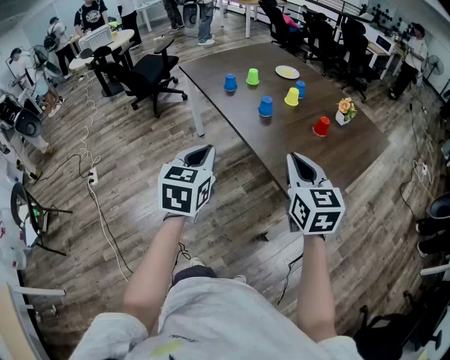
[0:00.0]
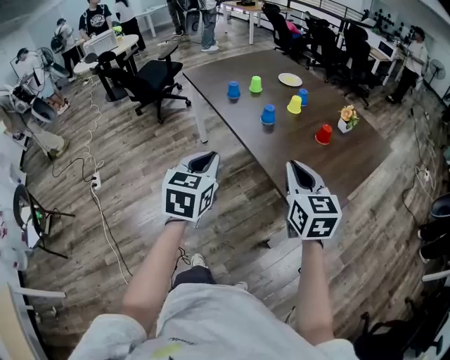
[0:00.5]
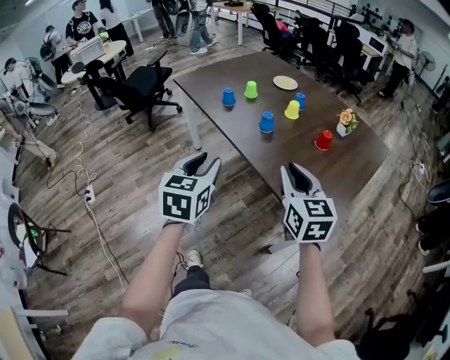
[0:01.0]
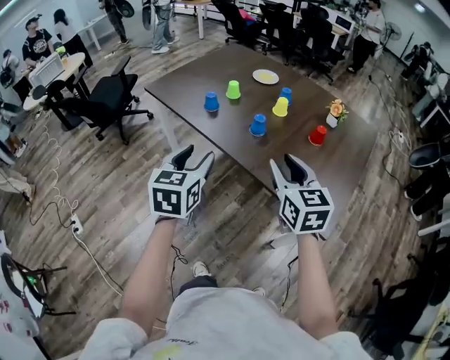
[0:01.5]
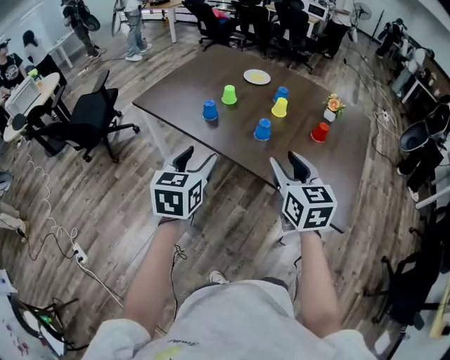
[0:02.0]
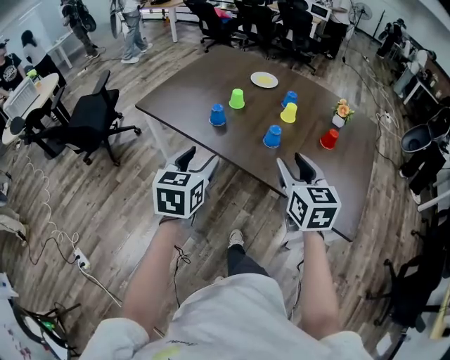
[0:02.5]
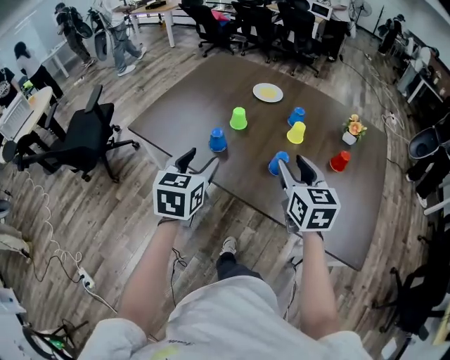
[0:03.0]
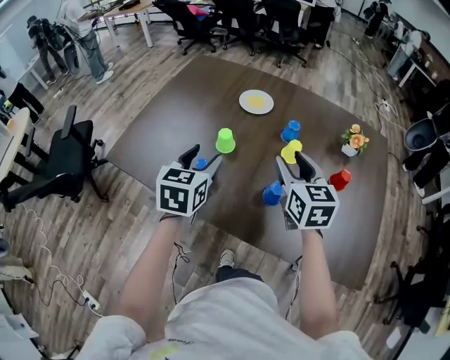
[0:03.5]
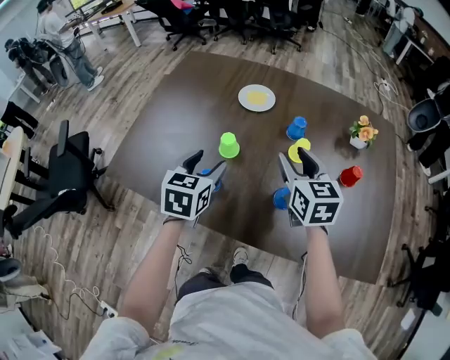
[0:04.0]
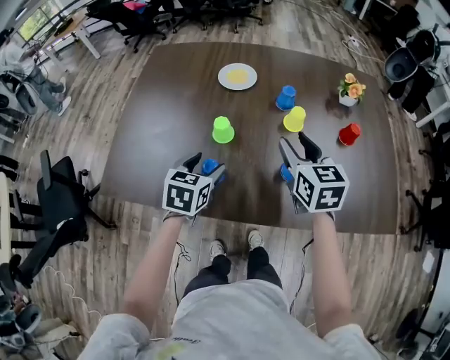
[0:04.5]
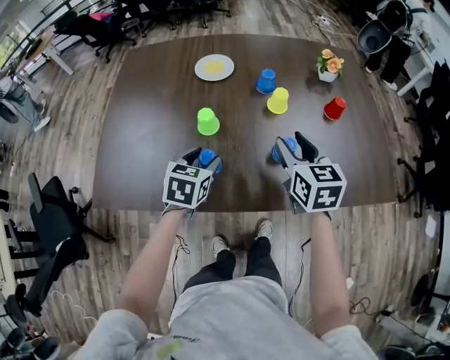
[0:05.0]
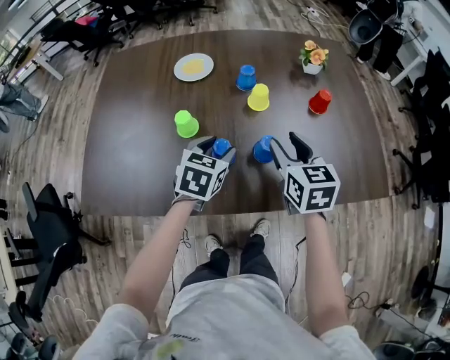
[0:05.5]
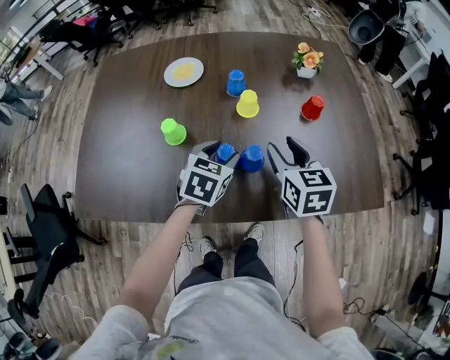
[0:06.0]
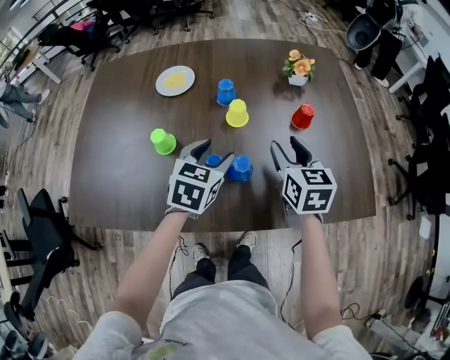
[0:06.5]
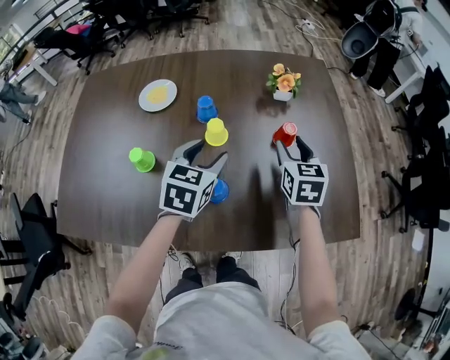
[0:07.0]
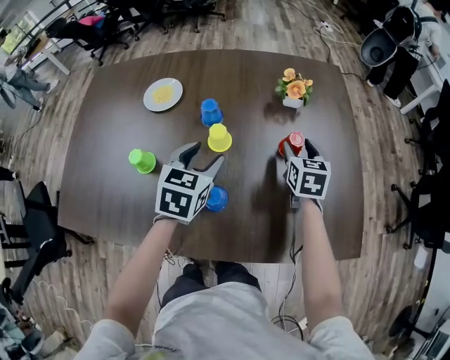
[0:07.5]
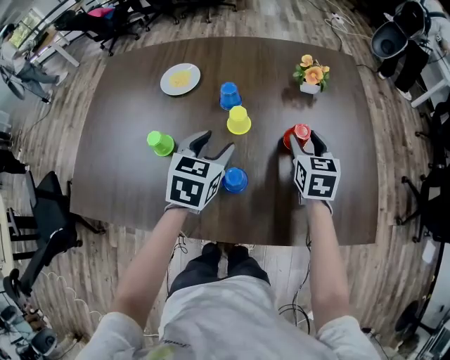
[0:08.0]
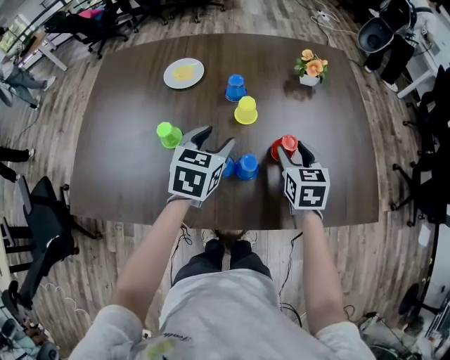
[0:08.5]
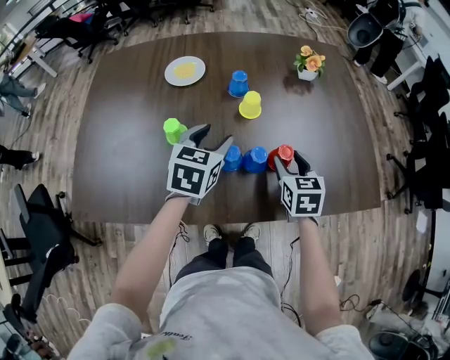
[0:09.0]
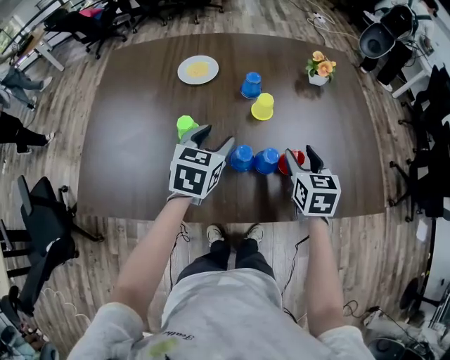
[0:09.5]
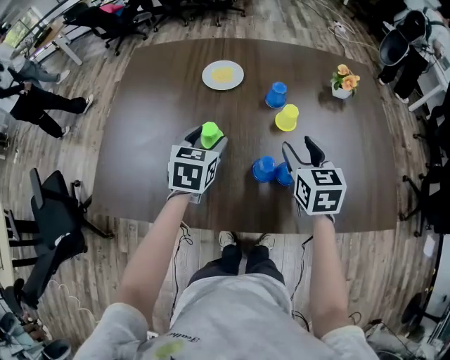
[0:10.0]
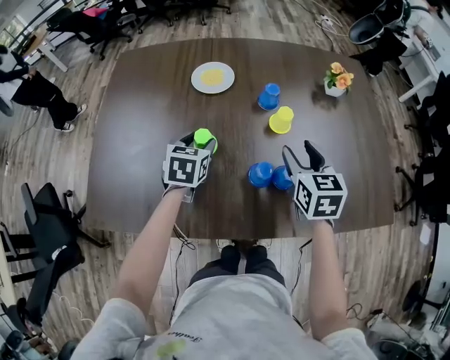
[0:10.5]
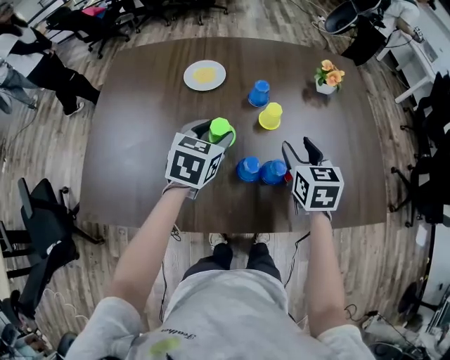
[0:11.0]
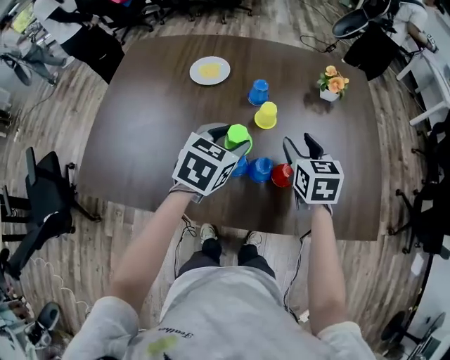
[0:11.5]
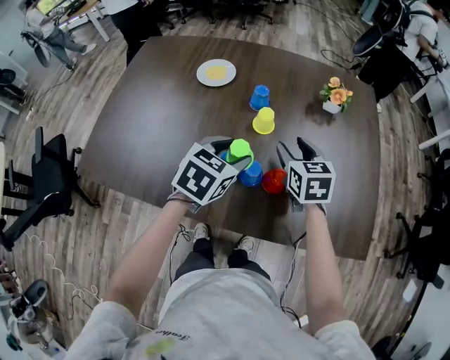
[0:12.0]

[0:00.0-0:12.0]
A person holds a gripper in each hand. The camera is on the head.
0:00.0 to 0:02.0: The two grippers go approximately 25 cm forward and to the left. The left gripper changes its angle by approximately 20 degrees, and opens up, while the right gripper changes its angle by roughly 20 degrees, and opens its fingers.
0:02.0 to 0:04.0: The grippers both shift forward by about 35 cm. The left gripper rotates approximately 20 degrees.
0:04.0 to 0:06.0: The right gripper moves about 15 cm, and changes its angle by about 20 degrees, while the left gripper shifts by approximately 20 cm, and swivels about 30 degrees.
0:06.0 to 0:08.0: The right gripper moves forward and to the right, some 15 cm; the left gripper moves forward, roughly 5 cm.
0:08.0 to 0:10.0: The left gripper heads to the left, covering roughly 20 cm; the right gripper heads to the left and backward, covering approximately 20 cm.
0:10.0 to 0:12.0: The left gripper travels to the right by some 20 cm. Meanwhile the right gripper travels to the right by approximately 10 cm.

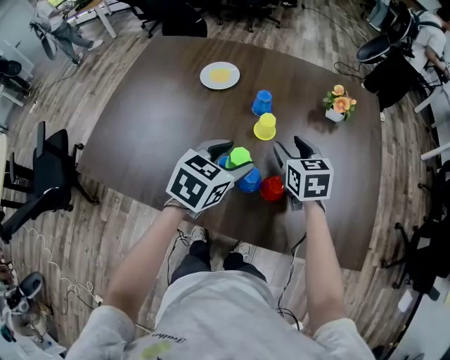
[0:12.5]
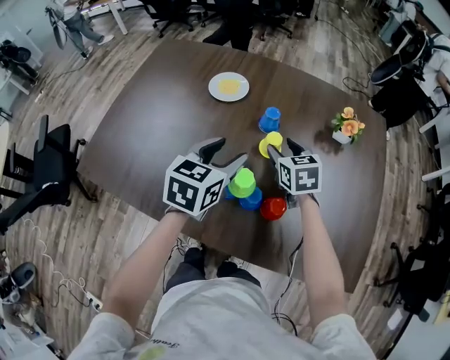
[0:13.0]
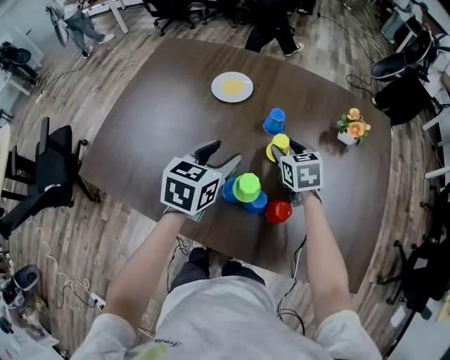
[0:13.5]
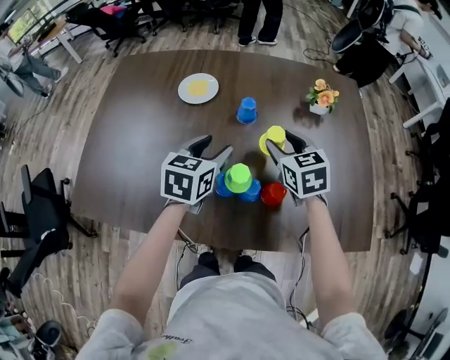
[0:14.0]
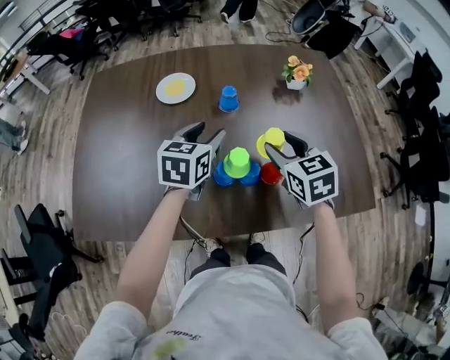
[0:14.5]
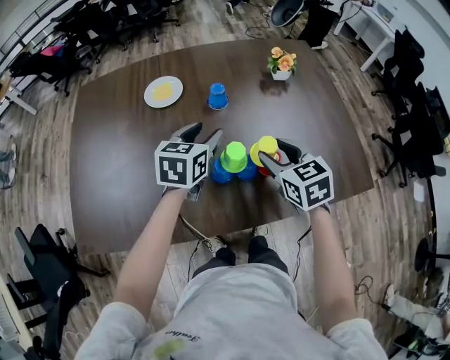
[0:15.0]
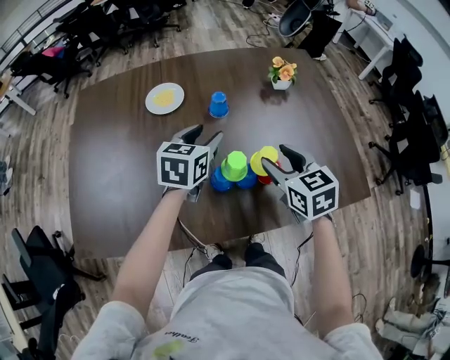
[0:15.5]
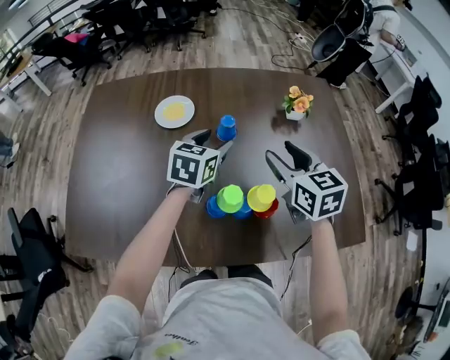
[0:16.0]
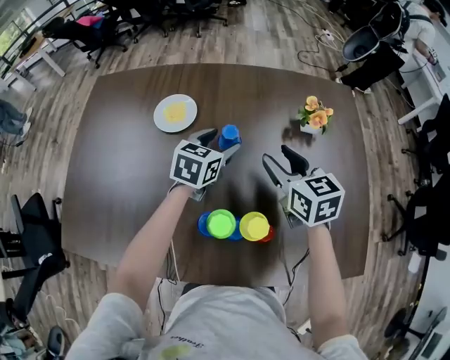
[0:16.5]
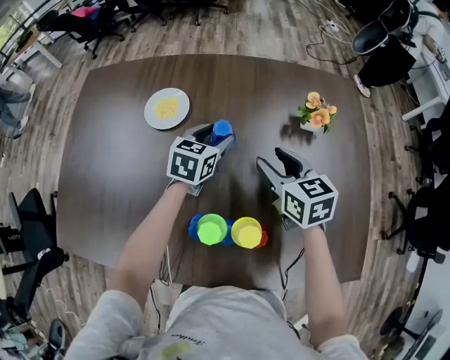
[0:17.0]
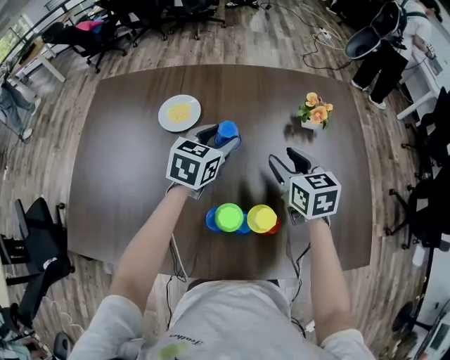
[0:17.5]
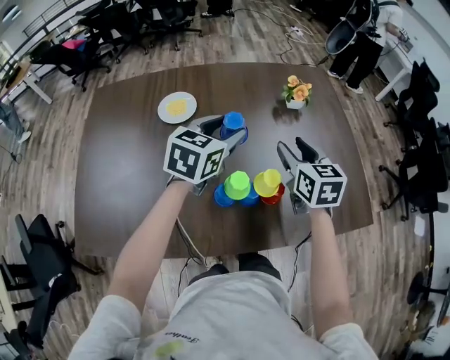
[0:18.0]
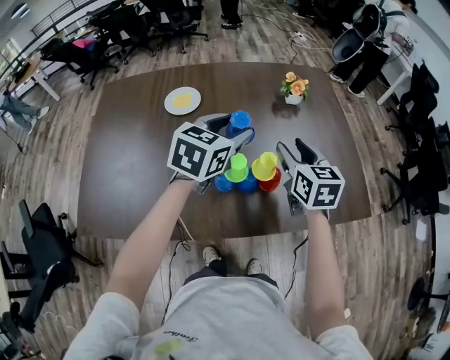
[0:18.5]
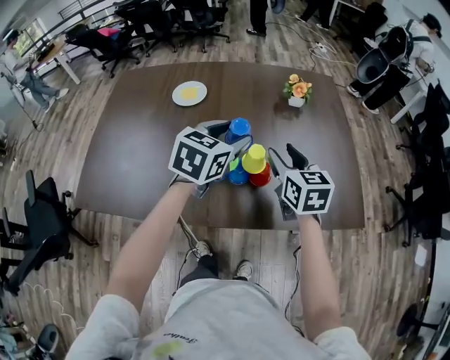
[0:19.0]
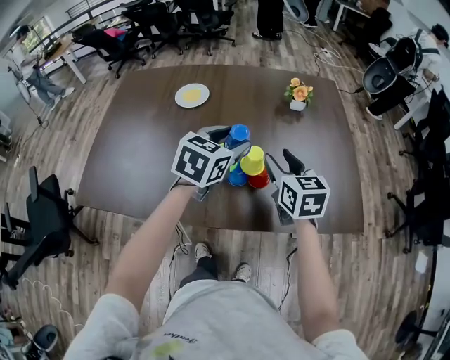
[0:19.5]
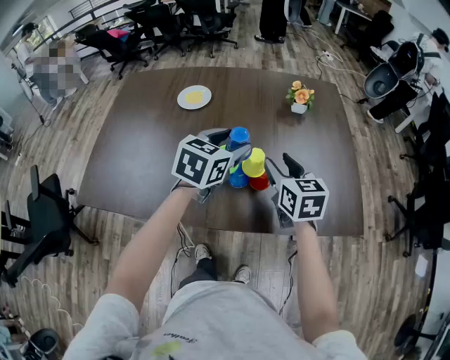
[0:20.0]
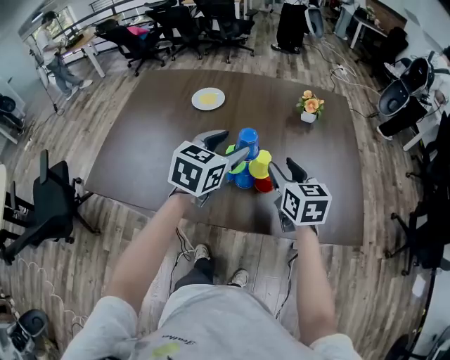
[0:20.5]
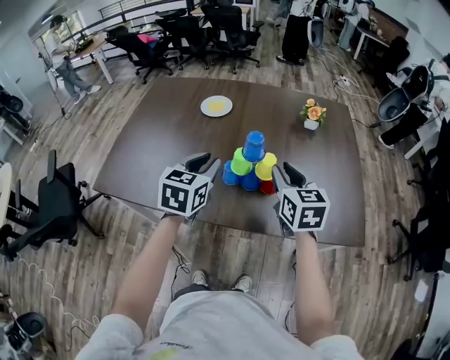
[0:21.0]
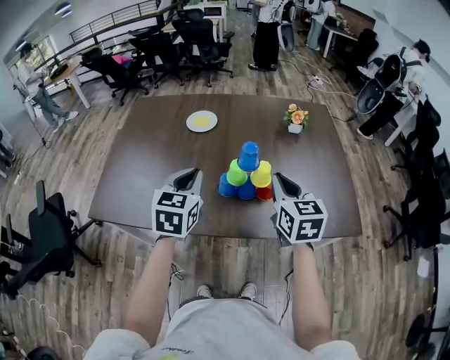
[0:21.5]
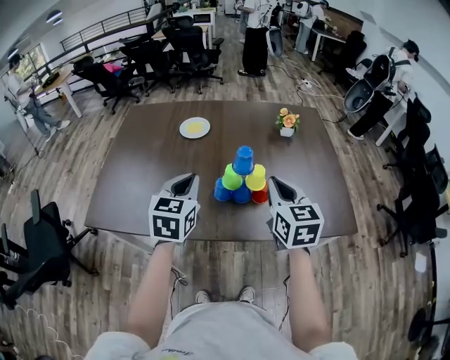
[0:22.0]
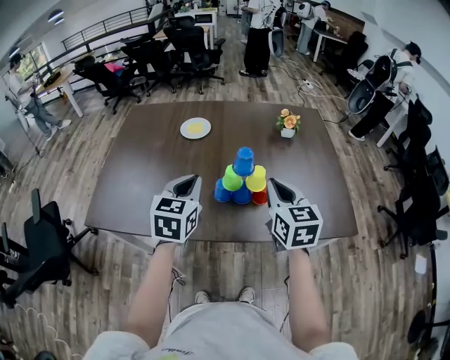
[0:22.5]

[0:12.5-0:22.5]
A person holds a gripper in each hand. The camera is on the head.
0:12.5 to 0:14.5: The left gripper goes some 10 cm forward and to the left; the right gripper shifts approximately 5 cm backward.
0:14.5 to 0:16.5: The left gripper shifts roughly 15 cm forward and downward, while the right gripper shifts approximately 15 cm forward.
0:16.5 to 0:18.5: The left gripper shifts about 20 cm backward and upward; the right gripper is displaced backward by approximately 15 cm, and turns by approximately 20 degrees.
0:18.5 to 0:20.5: The grippers both shift backward by some 5 cm.
0:20.5 to 0:22.5: The right gripper goes roughly 10 cm backward and upward, and closes its fingers. The left gripper travels to the left and backward by about 15 cm, and closes.

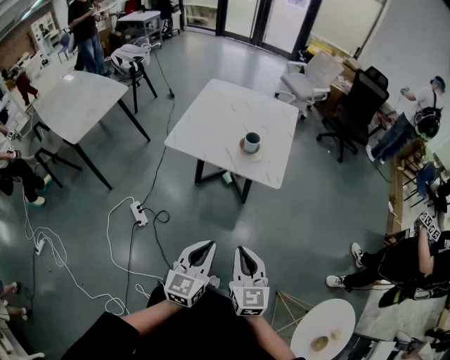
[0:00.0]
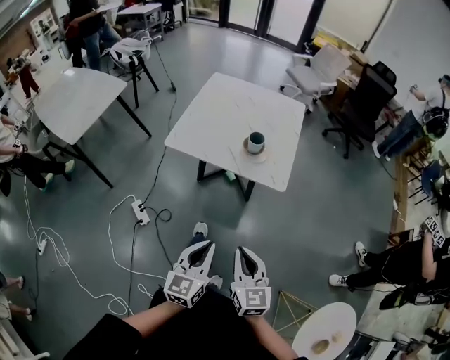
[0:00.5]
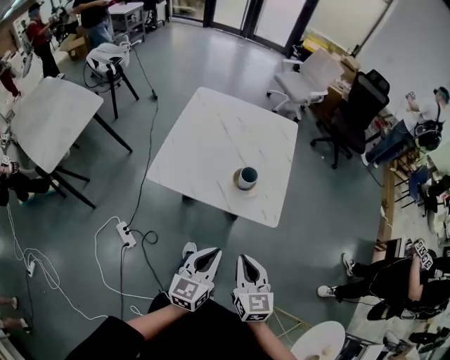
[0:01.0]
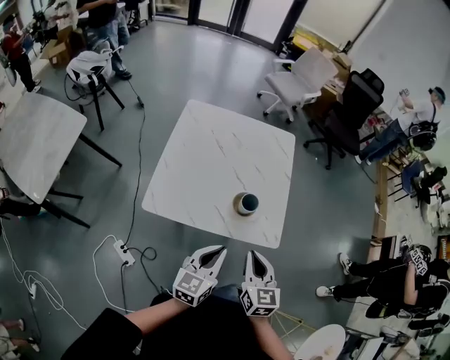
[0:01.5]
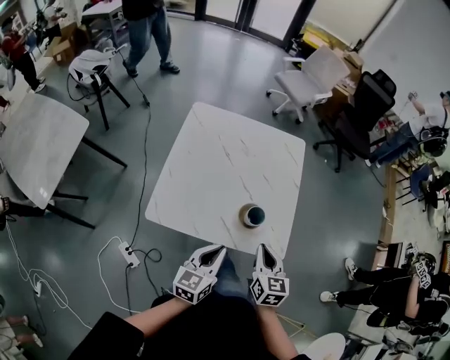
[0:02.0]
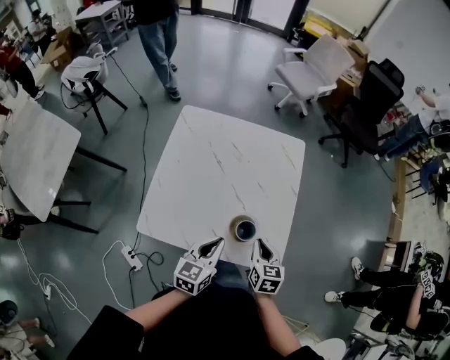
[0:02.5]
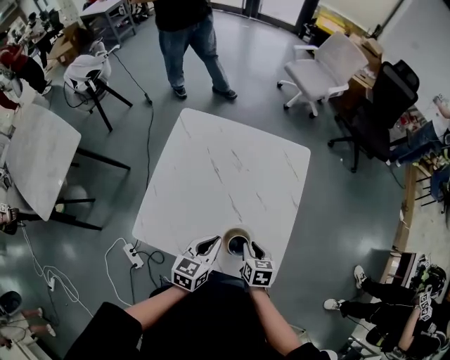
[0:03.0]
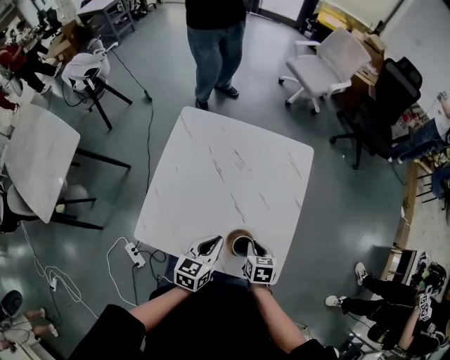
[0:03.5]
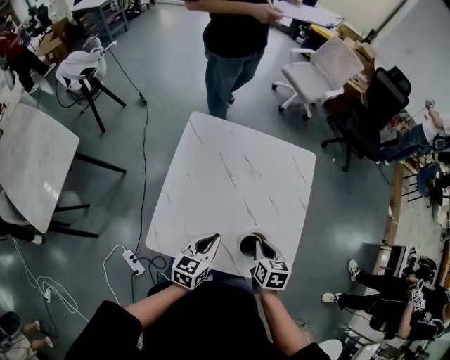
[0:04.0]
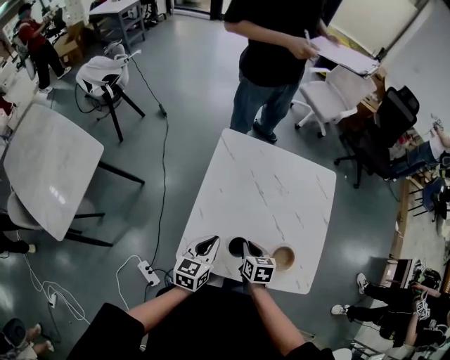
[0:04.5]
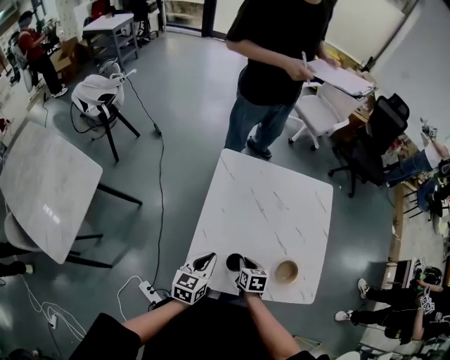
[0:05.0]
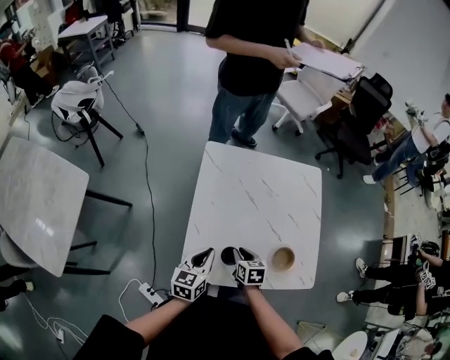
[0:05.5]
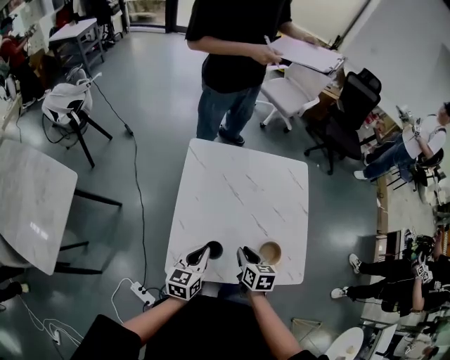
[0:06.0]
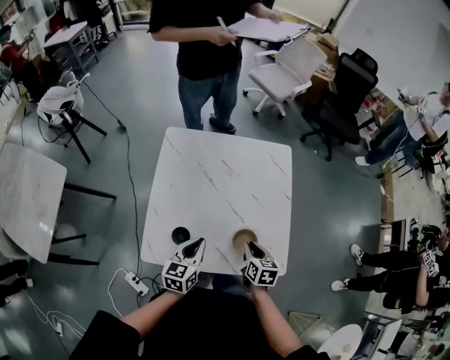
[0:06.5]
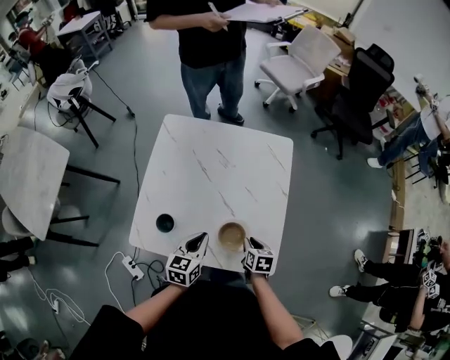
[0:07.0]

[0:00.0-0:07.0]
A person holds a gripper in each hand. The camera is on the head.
0:00.0 to 0:02.0: The two grippers travel together, forward, approximately 50 cm. The right gripper turns by approximately 20 degrees.
0:02.0 to 0:03.5: The left gripper travels forward by about 20 cm, while the right gripper heads downward and forward, covering roughly 20 cm, and rotates roughly 30 degrees.
0:03.5 to 0:05.0: Both grippers travel together to the left, roughly 30 cm.
0:05.0 to 0:07.0: Both grippers move to the right, about 30 cm.
